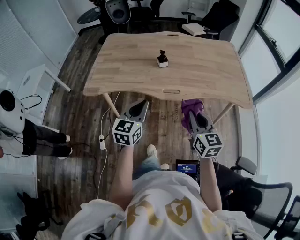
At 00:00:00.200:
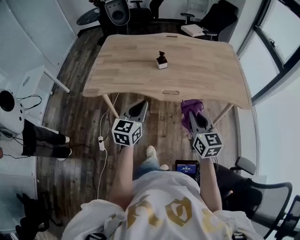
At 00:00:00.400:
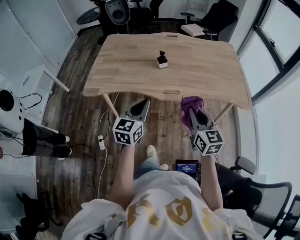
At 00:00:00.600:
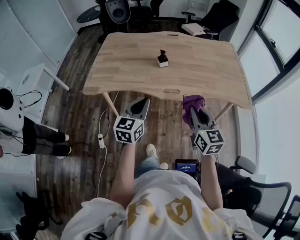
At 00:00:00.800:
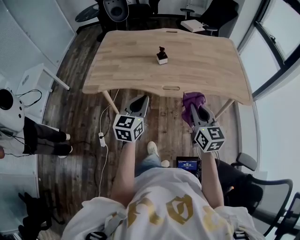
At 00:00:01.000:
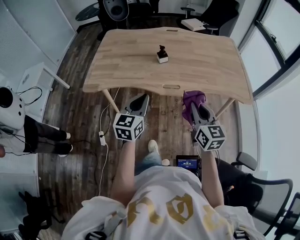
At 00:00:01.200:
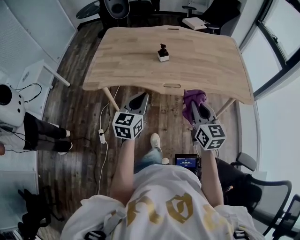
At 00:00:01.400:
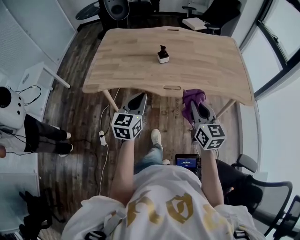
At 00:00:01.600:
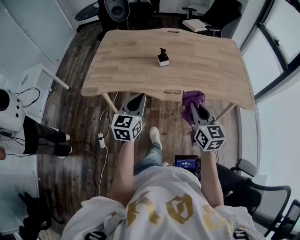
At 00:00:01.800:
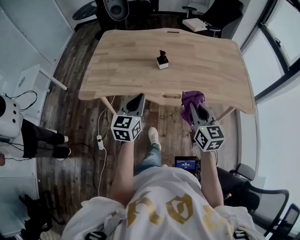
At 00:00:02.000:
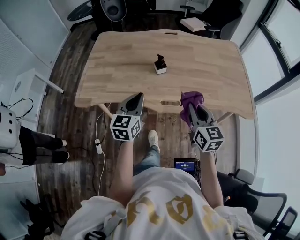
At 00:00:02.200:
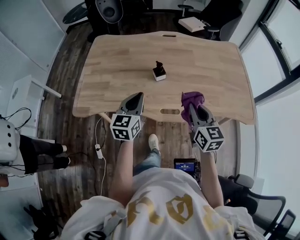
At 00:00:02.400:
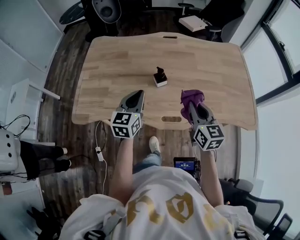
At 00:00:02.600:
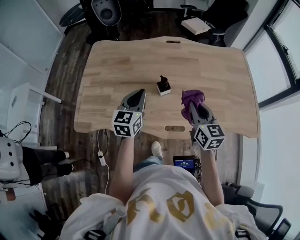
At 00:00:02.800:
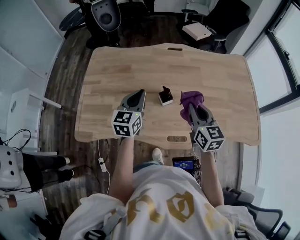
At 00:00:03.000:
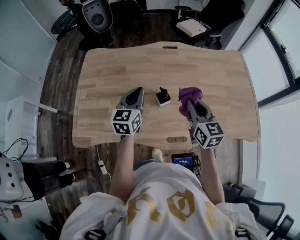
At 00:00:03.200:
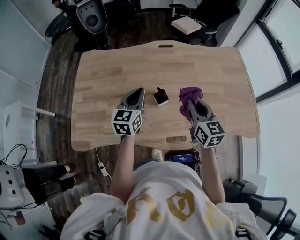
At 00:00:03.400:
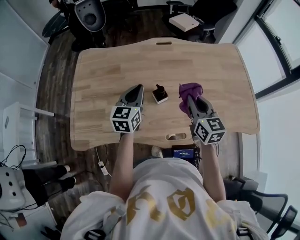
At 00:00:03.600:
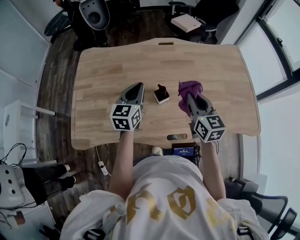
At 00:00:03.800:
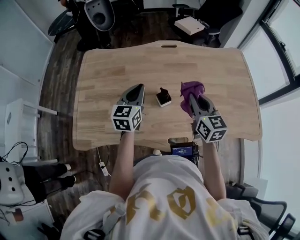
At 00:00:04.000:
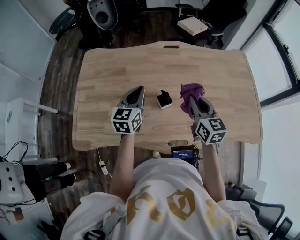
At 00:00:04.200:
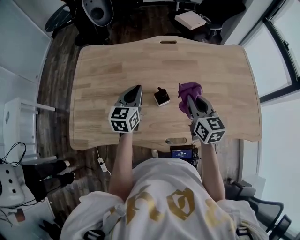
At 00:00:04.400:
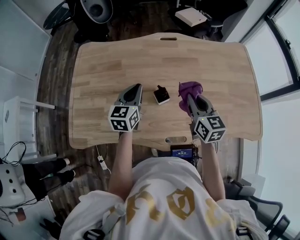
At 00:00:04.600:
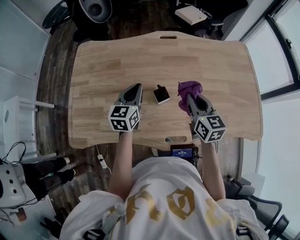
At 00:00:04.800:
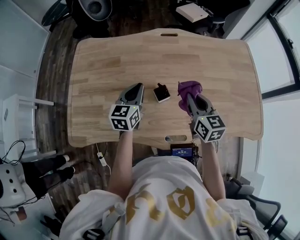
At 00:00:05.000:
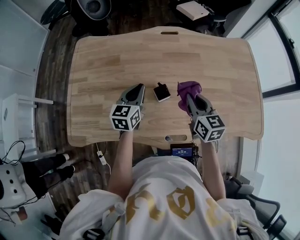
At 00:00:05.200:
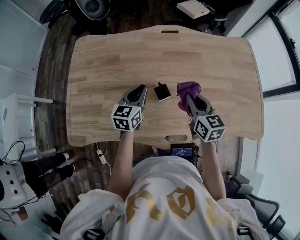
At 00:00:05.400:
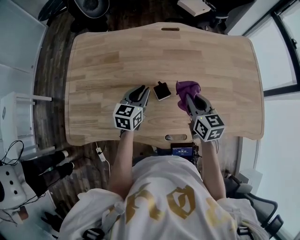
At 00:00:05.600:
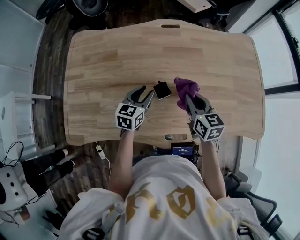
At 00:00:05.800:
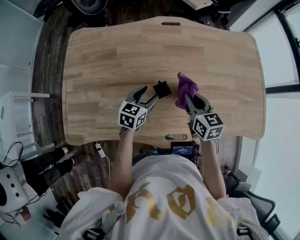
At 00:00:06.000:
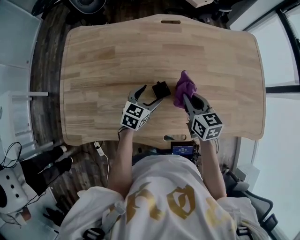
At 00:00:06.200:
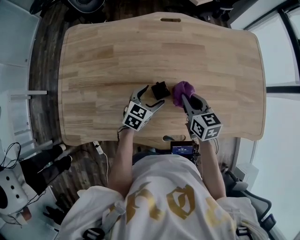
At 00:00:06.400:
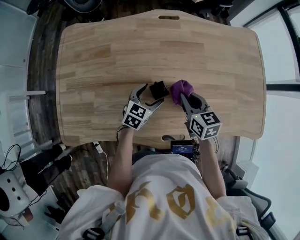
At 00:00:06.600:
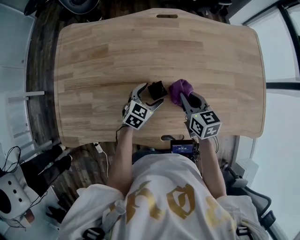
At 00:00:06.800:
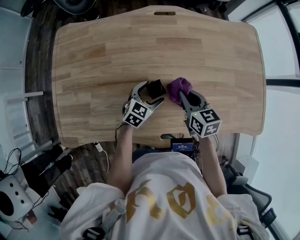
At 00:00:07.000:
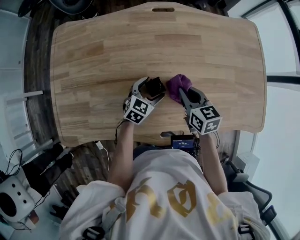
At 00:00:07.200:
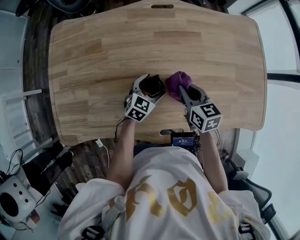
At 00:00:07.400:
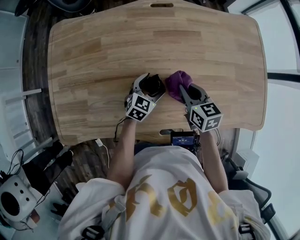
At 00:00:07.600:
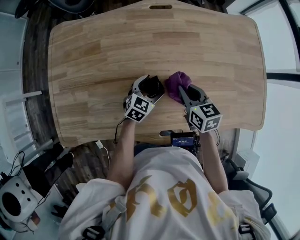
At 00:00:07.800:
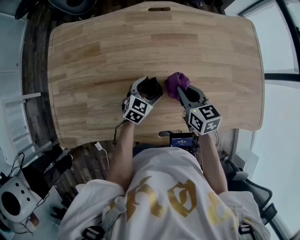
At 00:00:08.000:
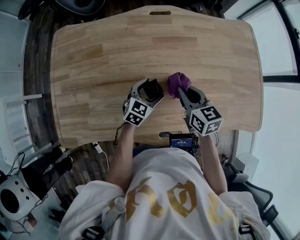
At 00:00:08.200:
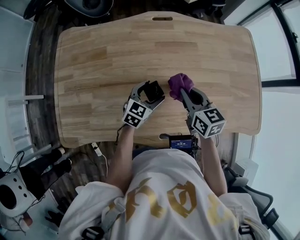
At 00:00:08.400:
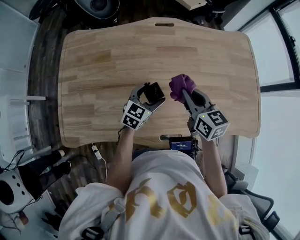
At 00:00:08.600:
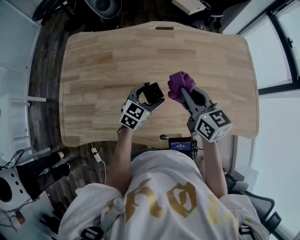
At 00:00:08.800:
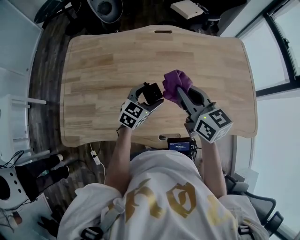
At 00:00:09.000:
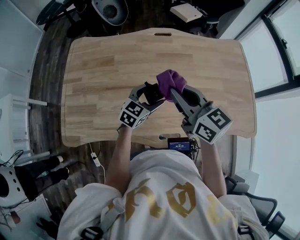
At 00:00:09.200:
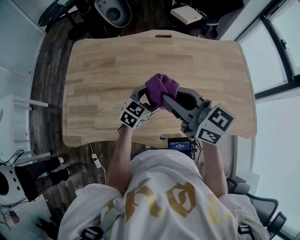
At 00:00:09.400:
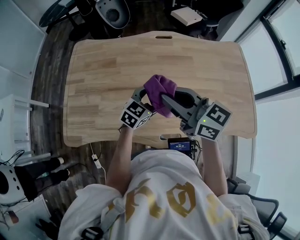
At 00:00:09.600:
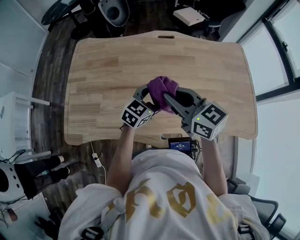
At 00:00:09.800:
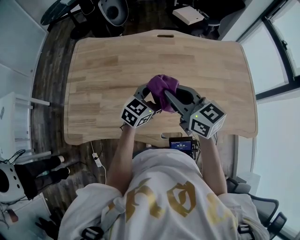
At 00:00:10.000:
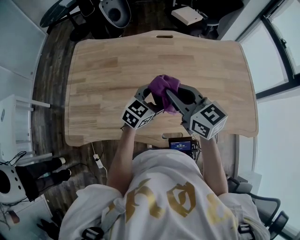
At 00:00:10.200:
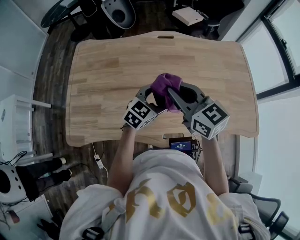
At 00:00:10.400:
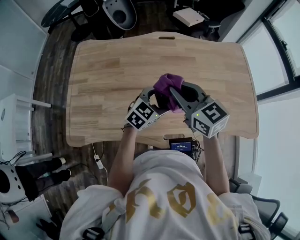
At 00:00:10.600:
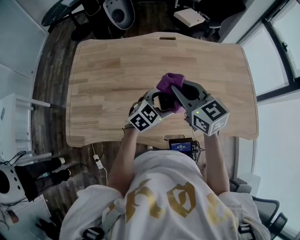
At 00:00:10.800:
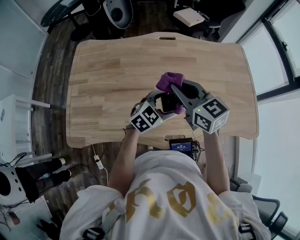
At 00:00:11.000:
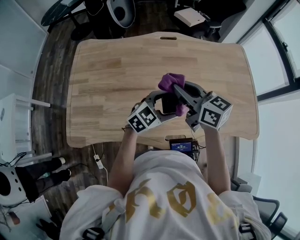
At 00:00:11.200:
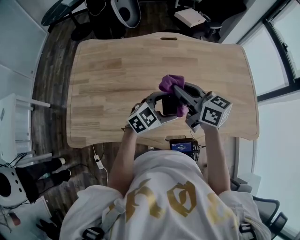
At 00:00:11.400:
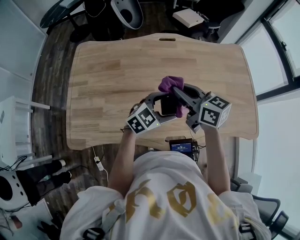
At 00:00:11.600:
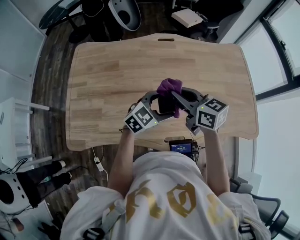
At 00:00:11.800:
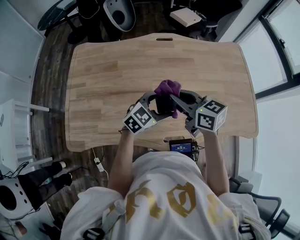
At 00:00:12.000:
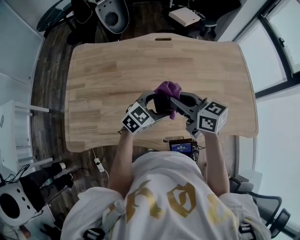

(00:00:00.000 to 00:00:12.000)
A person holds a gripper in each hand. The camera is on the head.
00:00:00.000 - 00:00:01.600: Both grippers move forward, roughly 5 cm.
00:00:01.600 - 00:00:03.000: The pair of grippers is taken forward, roughly 40 cm.
00:00:03.000 - 00:00:04.400: The right gripper shifts approximately 5 cm forward. The left gripper moves downward, some 5 cm.
00:00:04.400 - 00:00:06.000: The right gripper moves downward, about 10 cm; the left gripper goes about 15 cm downward and to the right, swivels roughly 30 degrees, and opens.
00:00:06.000 - 00:00:07.600: The left gripper goes roughly 5 cm downward.
00:00:07.600 - 00:00:09.000: The right gripper heads upward, covering about 25 cm, and rotates approximately 30 degrees; the left gripper goes some 15 cm upward.
00:00:09.000 - 00:00:10.400: The left gripper changes place by approximately 5 cm.
00:00:10.400 - 00:00:12.000: The right gripper turns by some 20 degrees.

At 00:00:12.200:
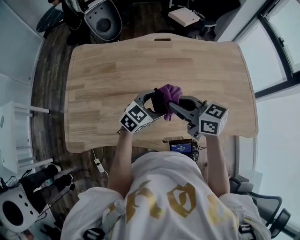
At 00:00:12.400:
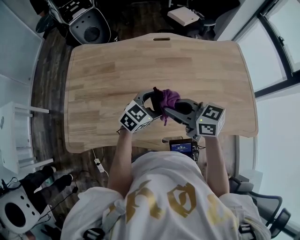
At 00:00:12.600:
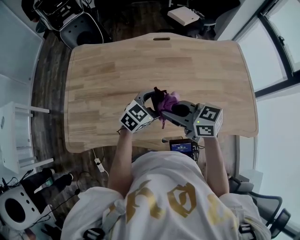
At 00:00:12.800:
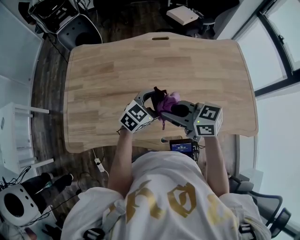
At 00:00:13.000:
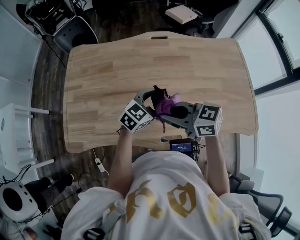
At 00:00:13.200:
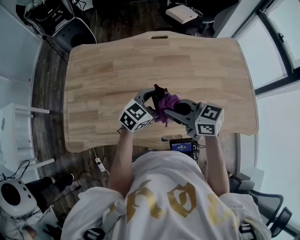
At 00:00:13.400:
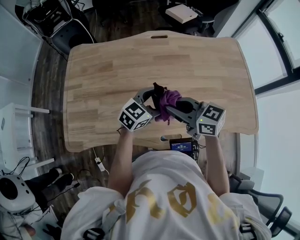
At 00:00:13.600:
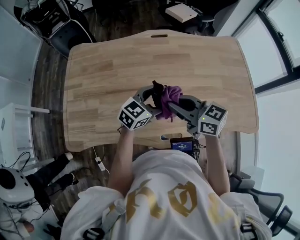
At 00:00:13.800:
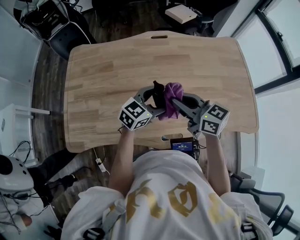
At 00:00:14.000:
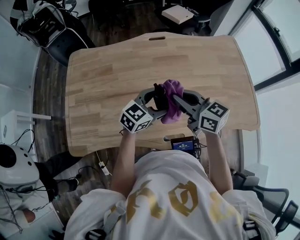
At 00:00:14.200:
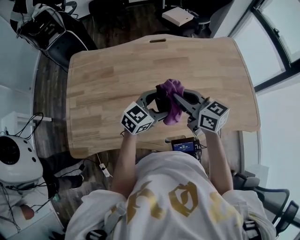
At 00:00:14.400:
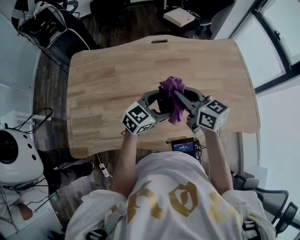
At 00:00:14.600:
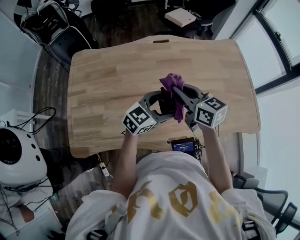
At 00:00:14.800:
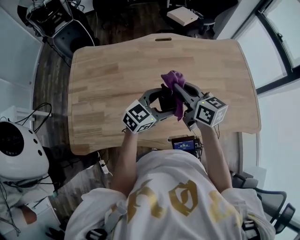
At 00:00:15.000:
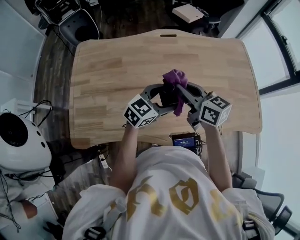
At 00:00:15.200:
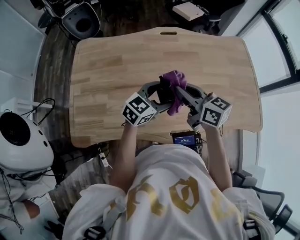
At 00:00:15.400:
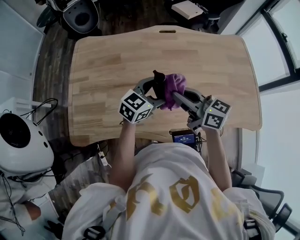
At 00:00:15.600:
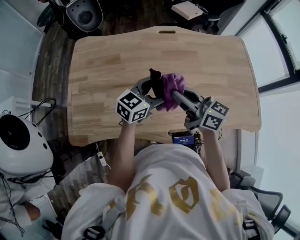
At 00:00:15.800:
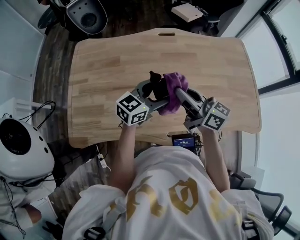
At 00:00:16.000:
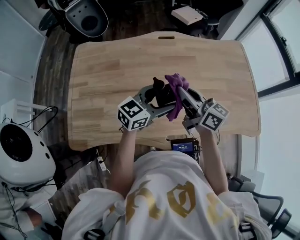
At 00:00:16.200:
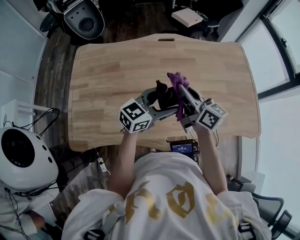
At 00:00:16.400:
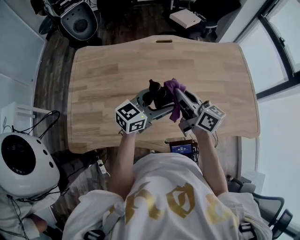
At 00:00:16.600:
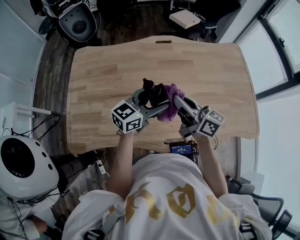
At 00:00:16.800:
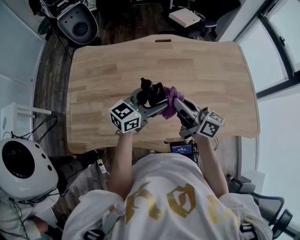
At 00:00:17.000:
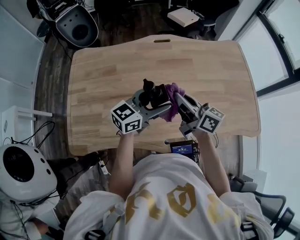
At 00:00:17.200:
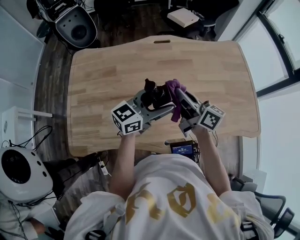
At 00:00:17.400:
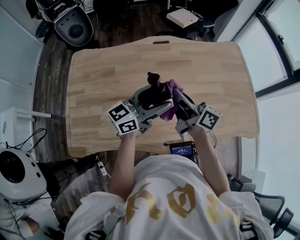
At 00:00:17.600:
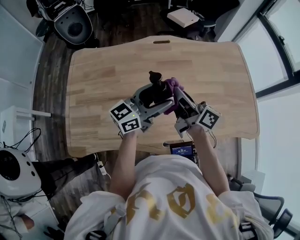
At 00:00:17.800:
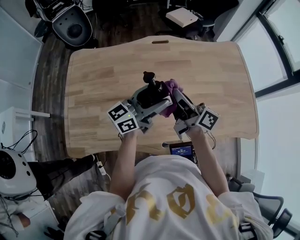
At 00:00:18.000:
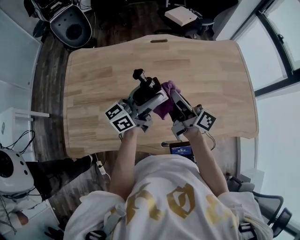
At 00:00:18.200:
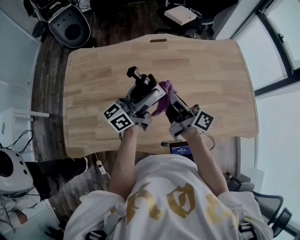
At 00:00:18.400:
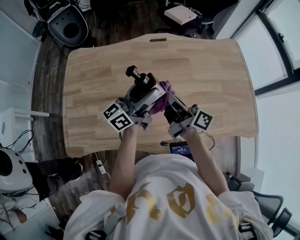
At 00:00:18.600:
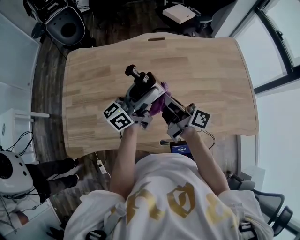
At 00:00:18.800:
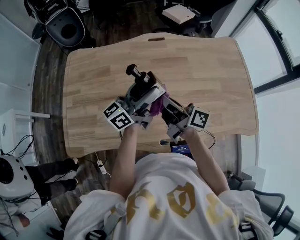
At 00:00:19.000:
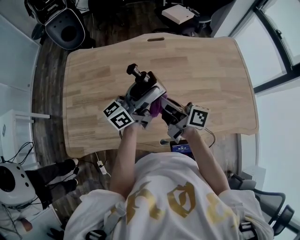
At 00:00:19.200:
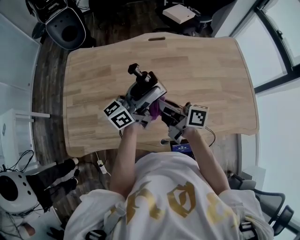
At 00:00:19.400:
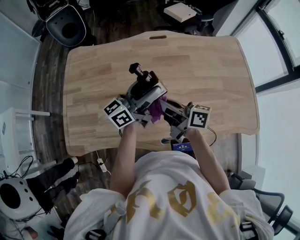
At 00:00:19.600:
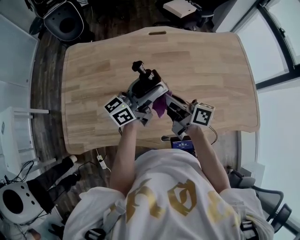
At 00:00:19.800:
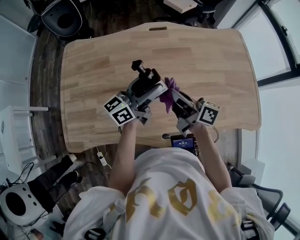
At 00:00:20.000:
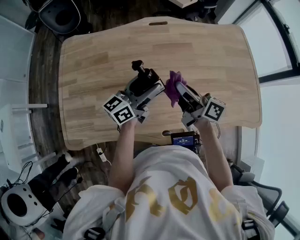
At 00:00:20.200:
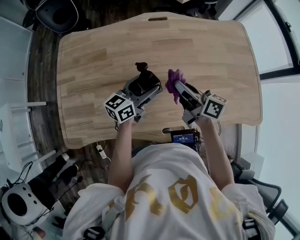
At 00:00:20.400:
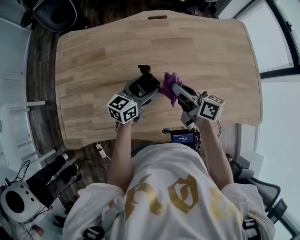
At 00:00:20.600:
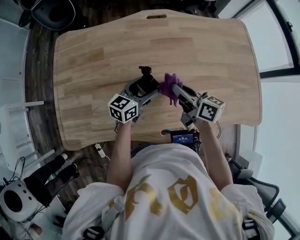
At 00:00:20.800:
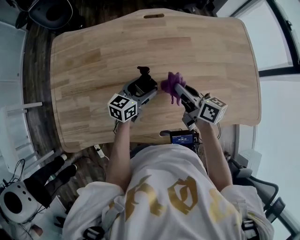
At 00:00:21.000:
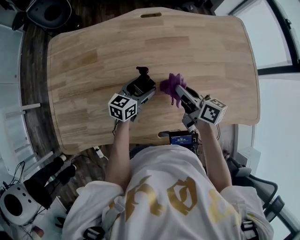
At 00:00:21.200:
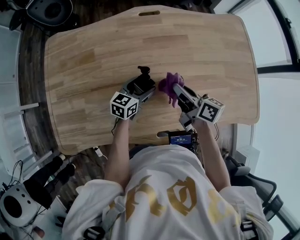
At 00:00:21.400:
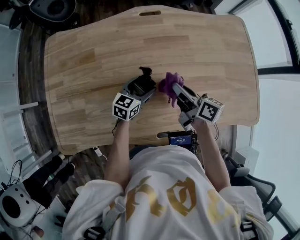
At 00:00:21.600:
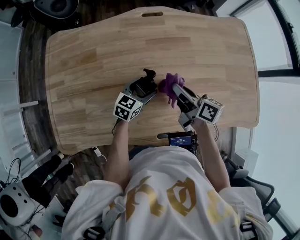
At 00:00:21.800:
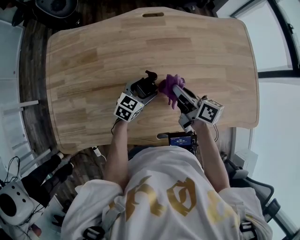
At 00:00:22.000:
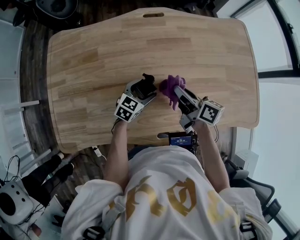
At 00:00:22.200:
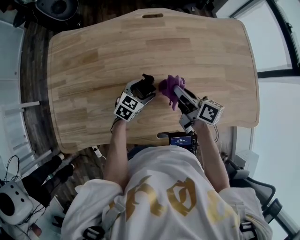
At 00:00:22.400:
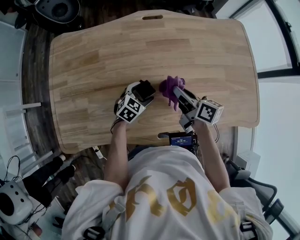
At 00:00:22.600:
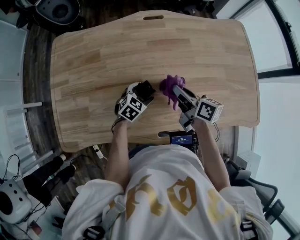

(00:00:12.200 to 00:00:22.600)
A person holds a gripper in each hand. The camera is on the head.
00:00:12.200 - 00:00:13.600: The grippers make only small movements.
00:00:15.200 - 00:00:16.600: The grippers stay close to where they were, moving slightly.
00:00:16.600 - 00:00:18.200: The right gripper rotates about 30 degrees. Meanwhile the left gripper shifts by roughly 5 cm, and turns by about 30 degrees.
00:00:18.200 - 00:00:19.600: The right gripper moves about 5 cm.
00:00:19.600 - 00:00:21.200: The right gripper shifts roughly 15 cm downward, to the right and forward. The left gripper goes approximately 25 cm downward, and points its fingers roughly 40 degrees further downward.
00:00:21.200 - 00:00:22.600: The left gripper shifts by about 5 cm, and rotates about 30 degrees.

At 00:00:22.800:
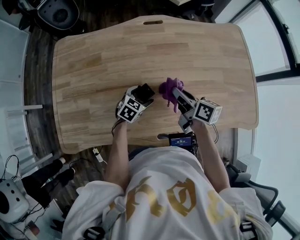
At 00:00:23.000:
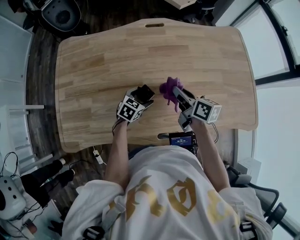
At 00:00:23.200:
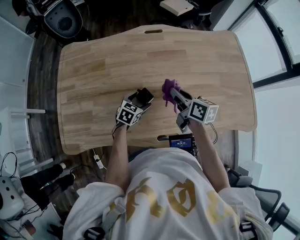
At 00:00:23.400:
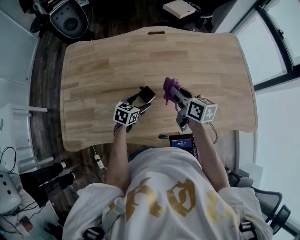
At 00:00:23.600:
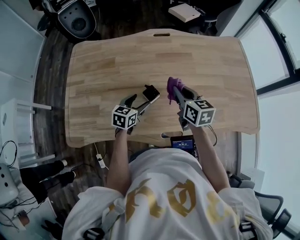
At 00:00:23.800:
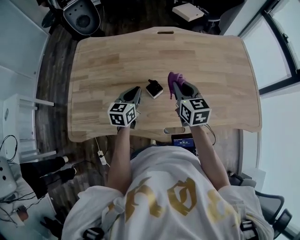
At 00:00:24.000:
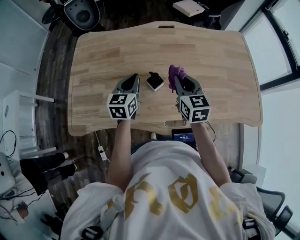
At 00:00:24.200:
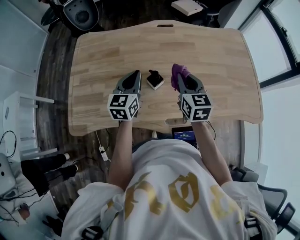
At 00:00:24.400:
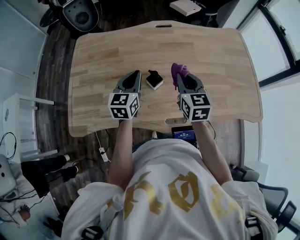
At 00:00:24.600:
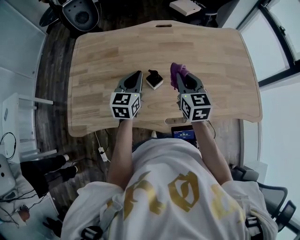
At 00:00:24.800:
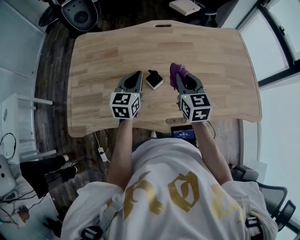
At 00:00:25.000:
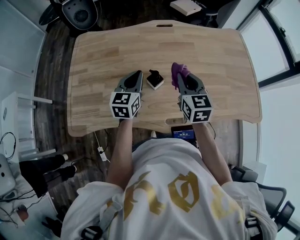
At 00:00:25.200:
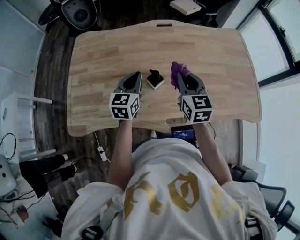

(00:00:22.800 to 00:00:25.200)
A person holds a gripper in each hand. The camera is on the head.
00:00:22.800 - 00:00:24.000: The left gripper travels upward and to the left by approximately 20 cm, turns by roughly 40 degrees, and closes up. The right gripper travels upward and backward by about 10 cm, and rotates around the line of its fingers by about 40 degrees, counterclockwise from behind.
00:00:24.000 - 00:00:25.200: The grippers make only small movements.
